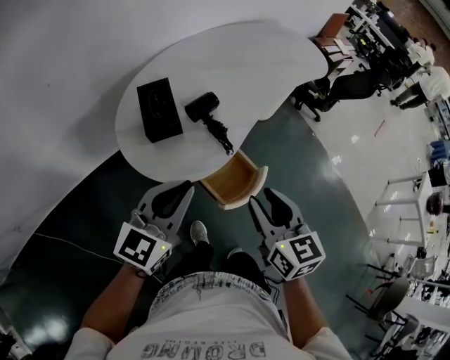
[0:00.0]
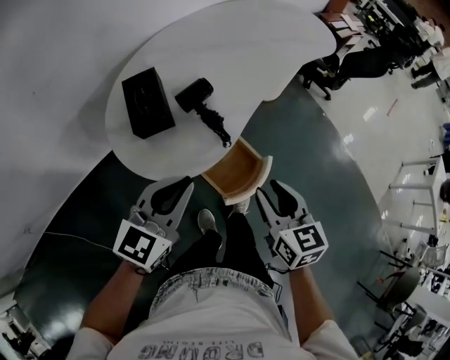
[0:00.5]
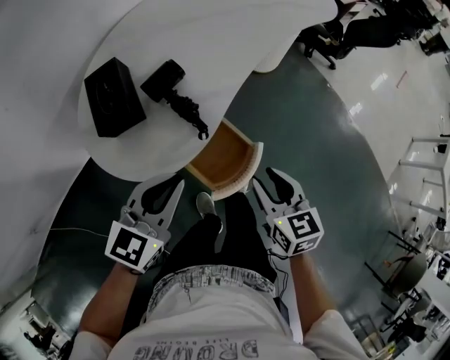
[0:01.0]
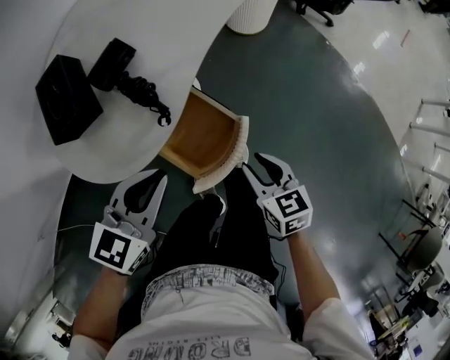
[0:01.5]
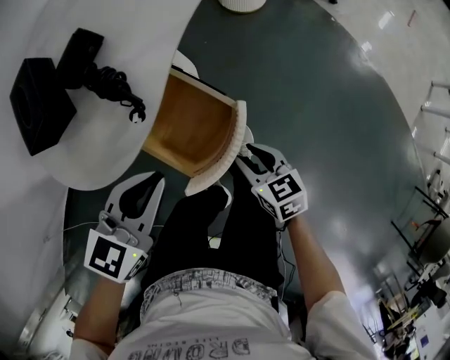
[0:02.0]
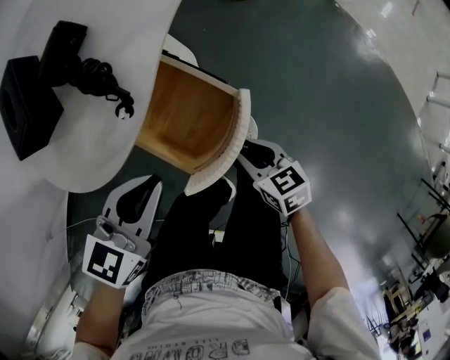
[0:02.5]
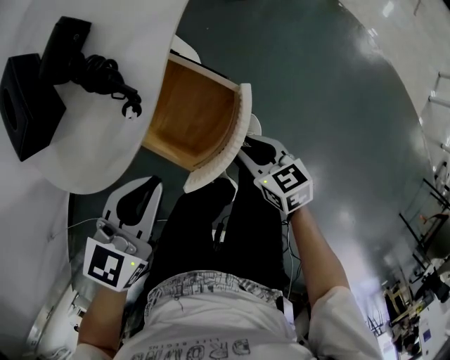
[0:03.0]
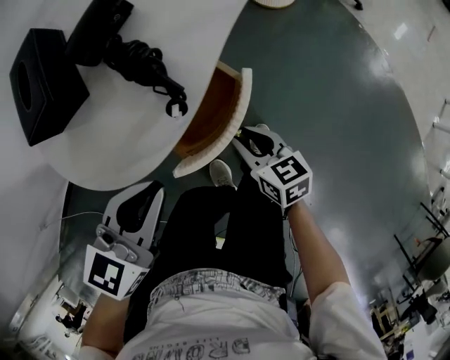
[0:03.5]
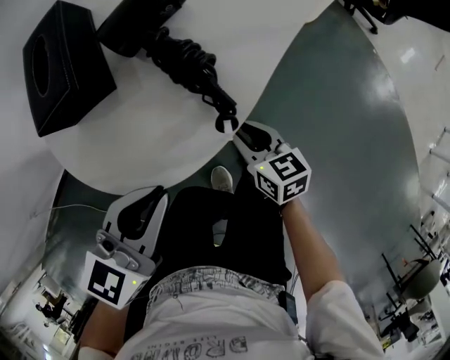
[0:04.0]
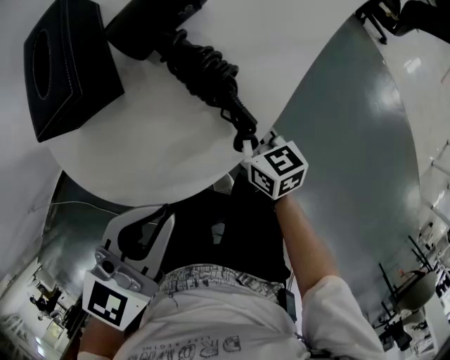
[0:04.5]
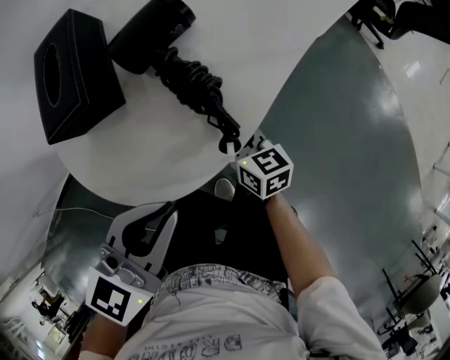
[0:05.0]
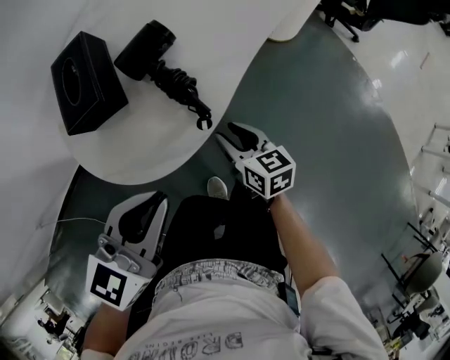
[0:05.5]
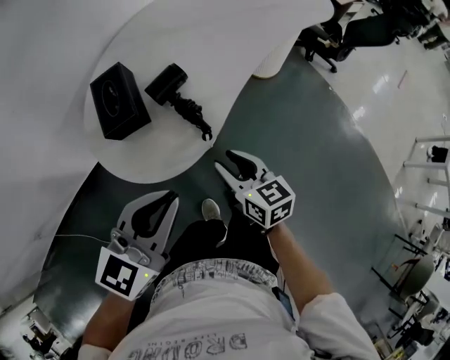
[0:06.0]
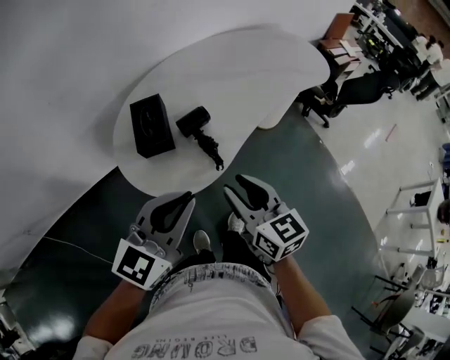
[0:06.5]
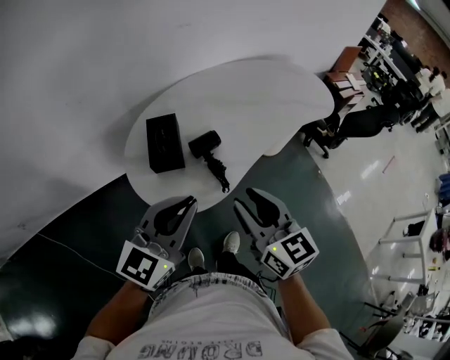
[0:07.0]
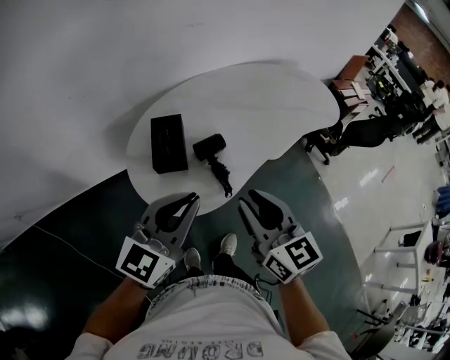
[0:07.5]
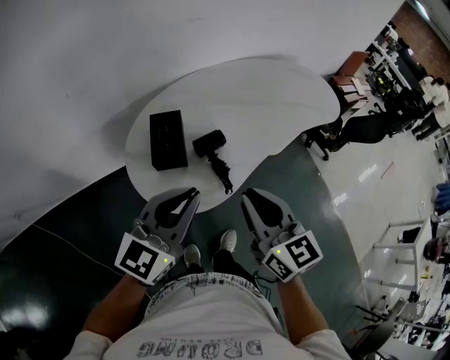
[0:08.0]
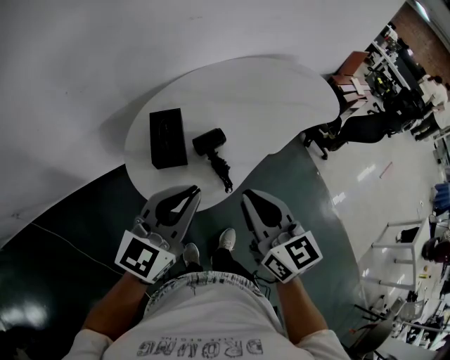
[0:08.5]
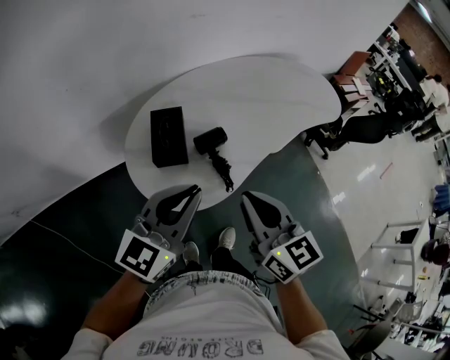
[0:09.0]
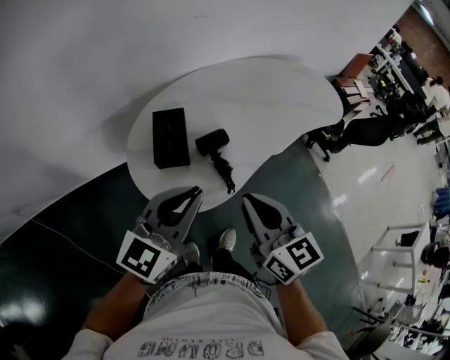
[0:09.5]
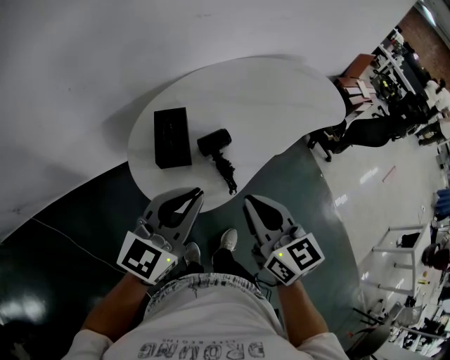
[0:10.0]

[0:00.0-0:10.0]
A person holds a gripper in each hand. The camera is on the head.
0:00.0 to 0:02.0: The left gripper goes about 30 cm downward and to the right, and rotates approximately 30 degrees. Meanwhile the right gripper goes roughly 40 cm downward, and changes its angle by some 20 degrees.
0:02.0 to 0:04.0: The right gripper shifts about 20 cm to the left and forward. The left gripper heads to the left, covering about 10 cm.
0:04.0 to 0:06.0: The grippers both shift upward by roughly 20 cm.
0:06.0 to 0:08.0: The left gripper travels upward and to the left by roughly 15 cm, and swivels some 20 degrees. Meanwhile the right gripper travels upward by some 25 cm, changes its angle by some 20 degrees, and closes up.
0:08.0 to 0:10.0: The two grippers keep their place.

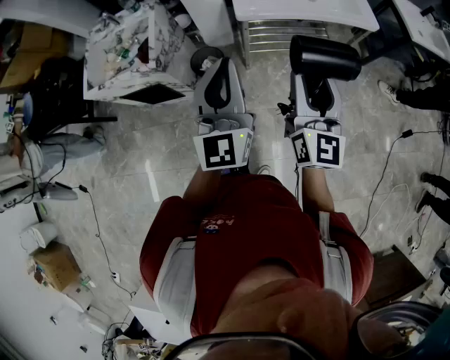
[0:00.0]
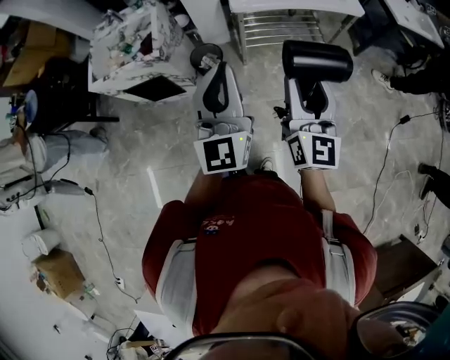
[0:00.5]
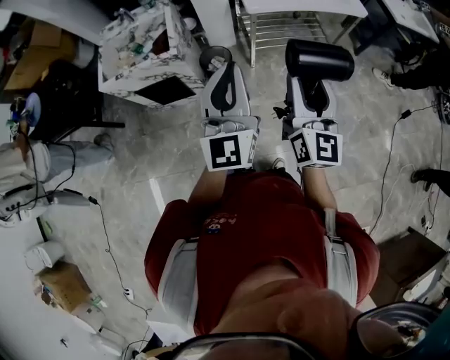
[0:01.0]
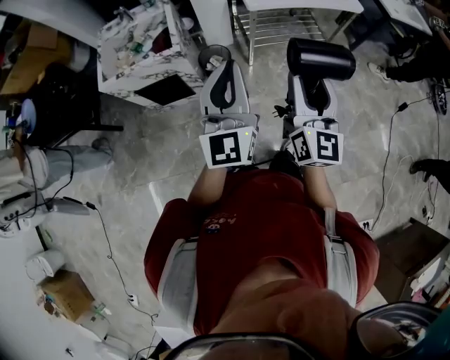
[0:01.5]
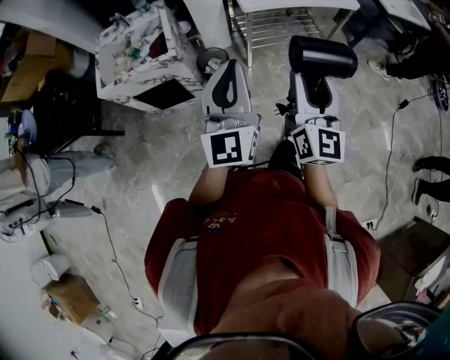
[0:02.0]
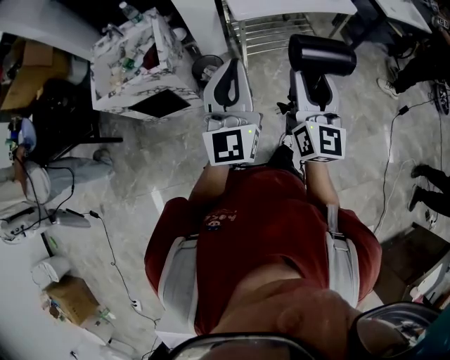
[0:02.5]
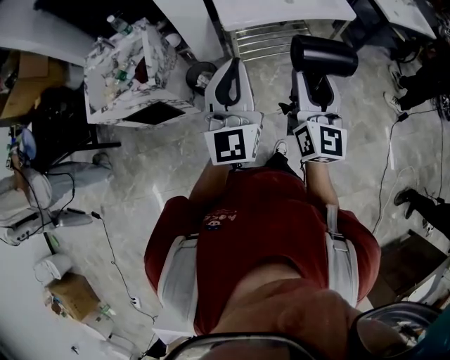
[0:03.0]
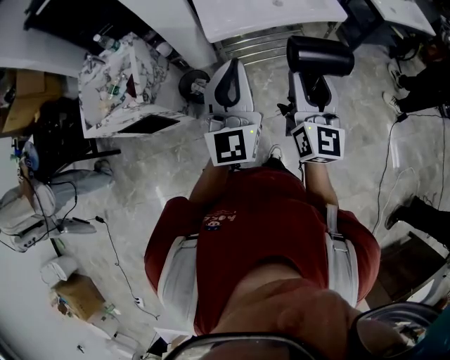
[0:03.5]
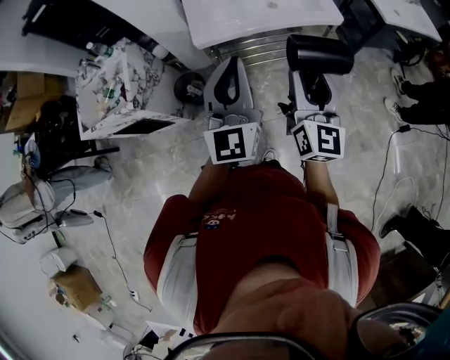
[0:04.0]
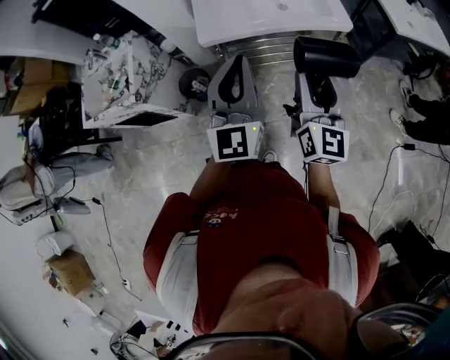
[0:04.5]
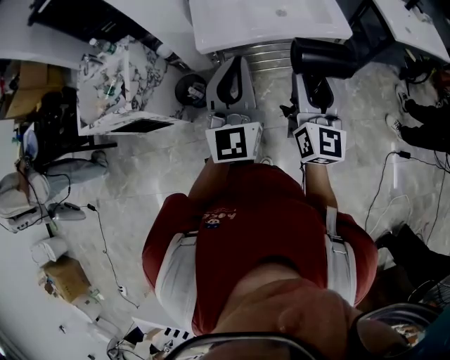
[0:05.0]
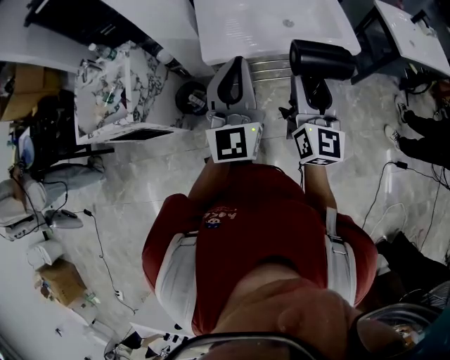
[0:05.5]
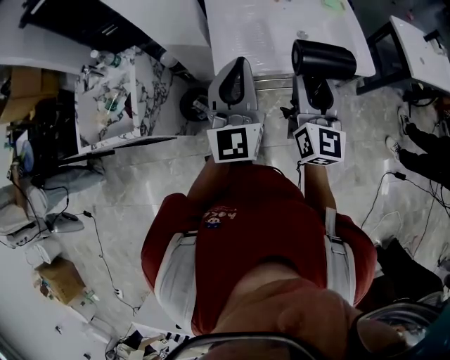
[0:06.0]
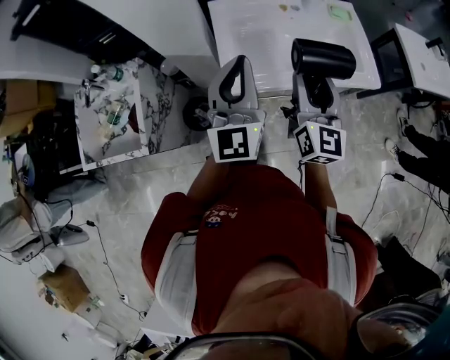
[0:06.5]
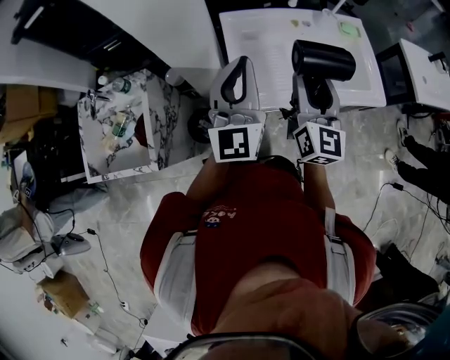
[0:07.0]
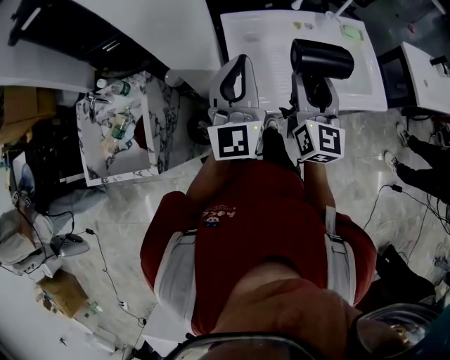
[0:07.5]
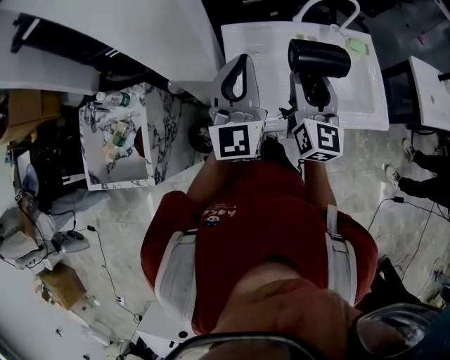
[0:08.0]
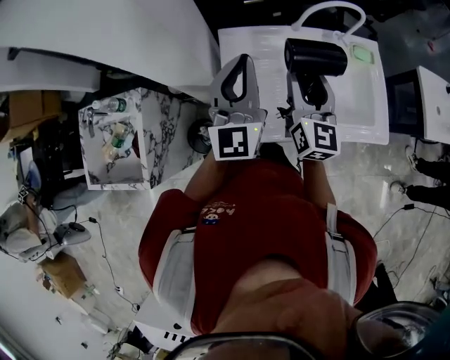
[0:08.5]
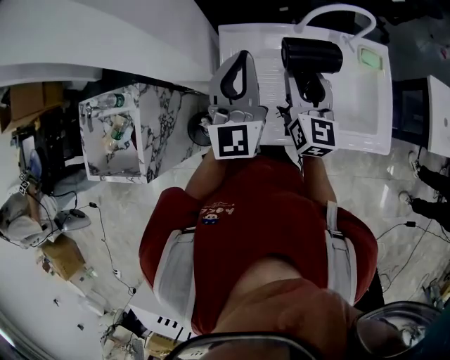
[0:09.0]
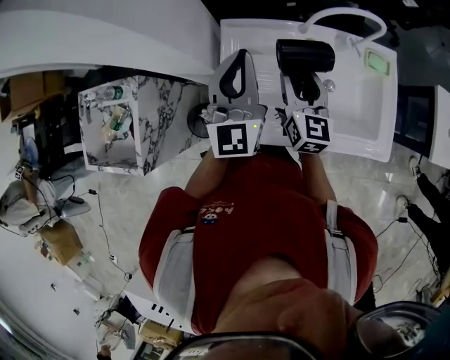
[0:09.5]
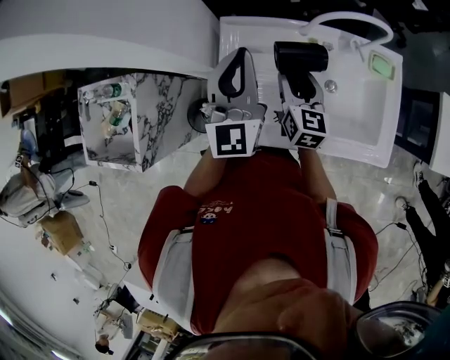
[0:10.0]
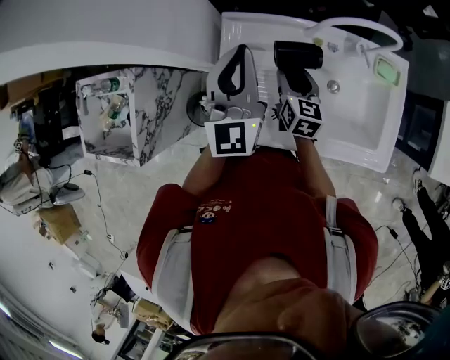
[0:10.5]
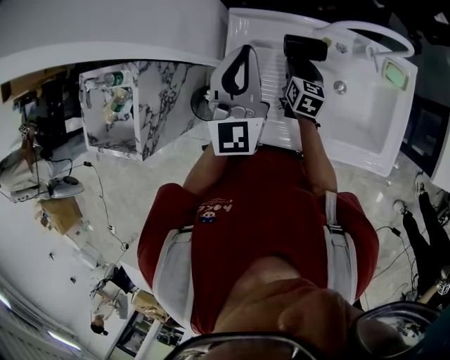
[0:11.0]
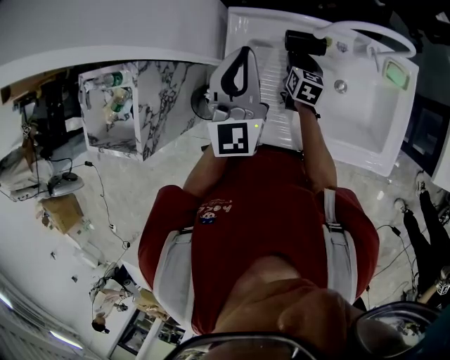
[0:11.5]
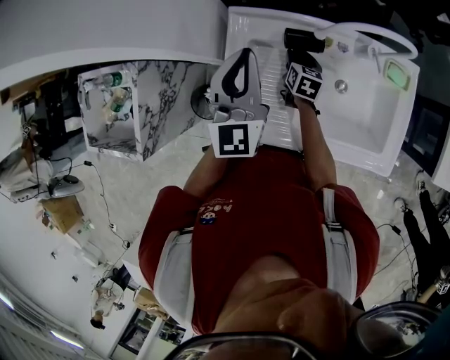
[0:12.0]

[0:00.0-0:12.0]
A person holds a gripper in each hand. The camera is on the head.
0:00.0 to 0:02.0: Both grippers travel together backward and to the left, about 20 cm.
0:02.0 to 0:04.0: Both grippers travel together to the right and forward, some 40 cm.
0:04.0 to 0:06.0: The right gripper is displaced forward by approximately 25 cm. The left gripper travels forward and to the left by roughly 25 cm.
0:06.0 to 0:08.0: The two grippers go roughly 25 cm forward.
0:08.0 to 0:10.0: The right gripper goes approximately 20 cm downward and forward, and swivels some 30 degrees. Meanwhile the left gripper travels forward, to the right and downward by approximately 15 cm.
0:10.0 to 0:12.0: The right gripper goes about 20 cm downward and forward, and changes its angle by some 20 degrees.

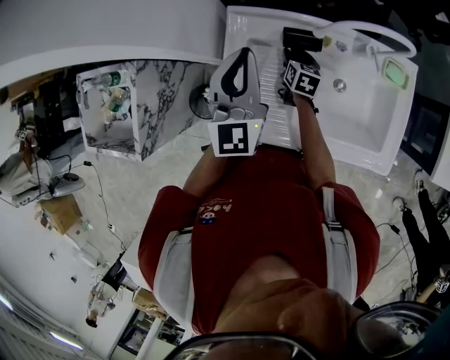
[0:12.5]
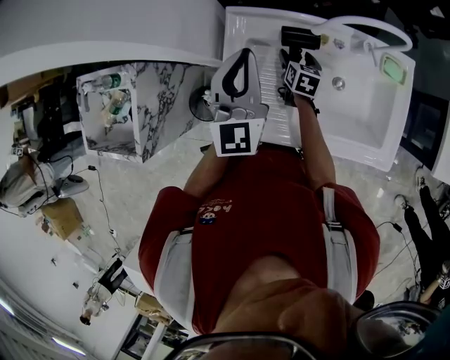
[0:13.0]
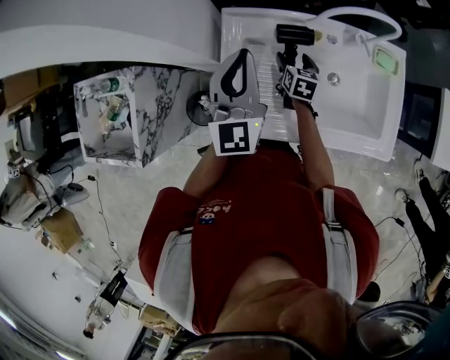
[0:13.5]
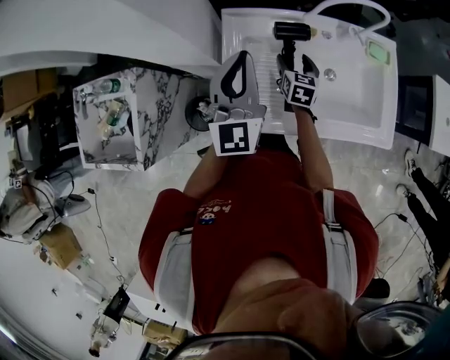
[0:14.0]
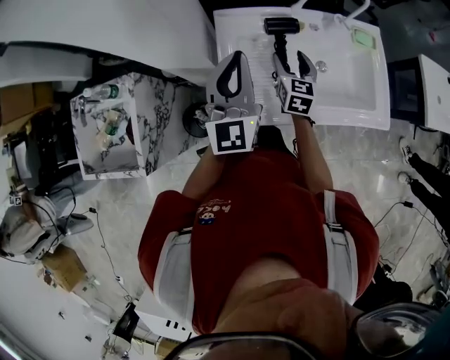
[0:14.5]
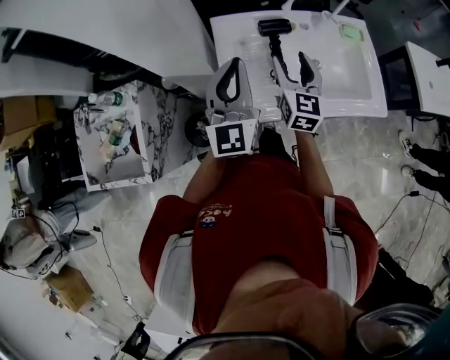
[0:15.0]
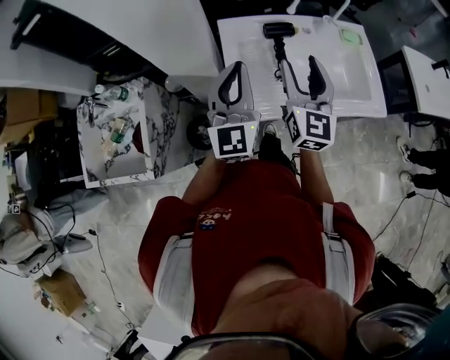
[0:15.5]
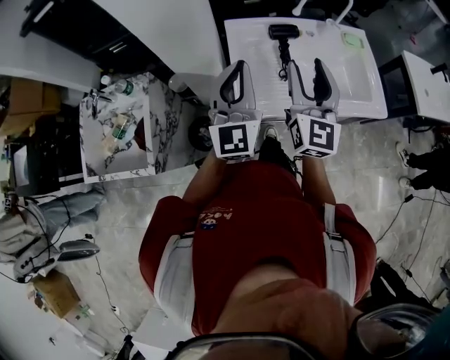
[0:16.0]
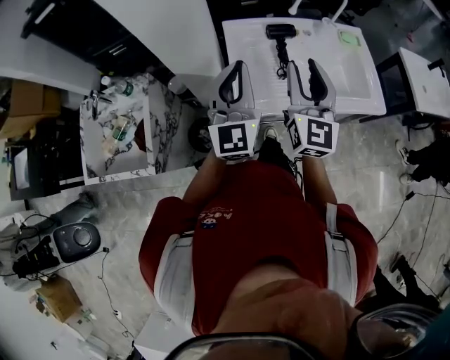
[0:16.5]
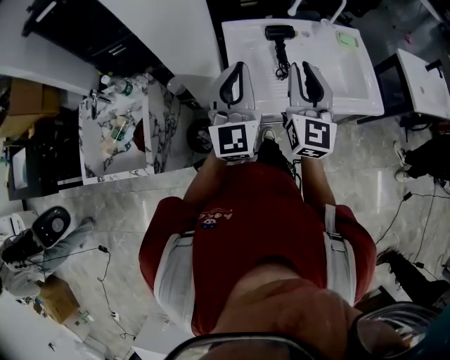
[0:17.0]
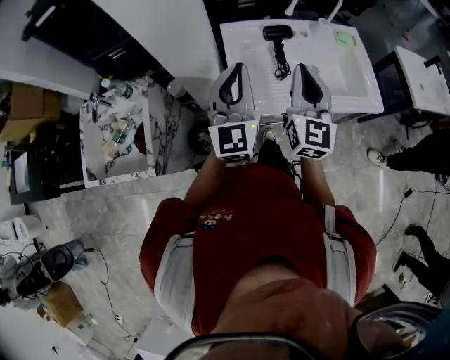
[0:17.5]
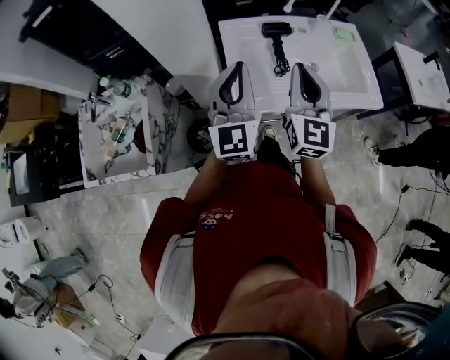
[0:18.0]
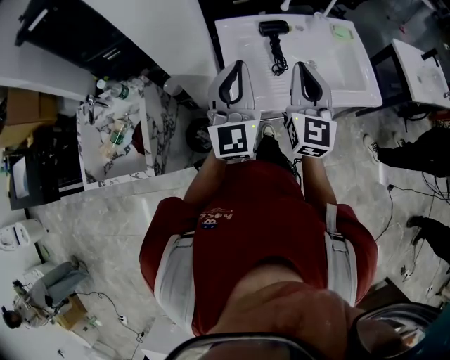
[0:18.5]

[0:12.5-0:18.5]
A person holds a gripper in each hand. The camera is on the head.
0:12.5 to 0:14.5: The right gripper travels upward and backward by approximately 20 cm, and swivels roughly 30 degrees. Meanwhile the left gripper shifts about 10 cm backward.
0:14.5 to 0:16.5: The left gripper goes approximately 15 cm backward. Meanwhile the right gripper goes approximately 30 cm upward and backward, angles its fingers upward, by some 30 degrees, and closes.
0:16.5 to 0:18.5: The right gripper closes.
